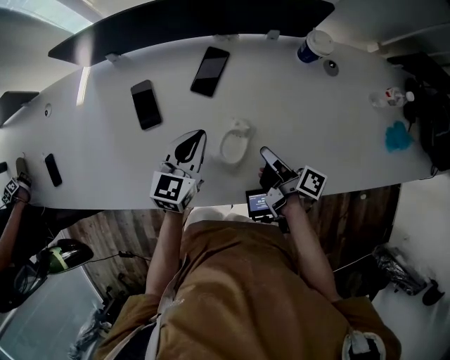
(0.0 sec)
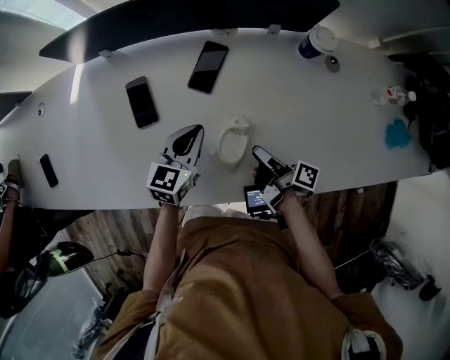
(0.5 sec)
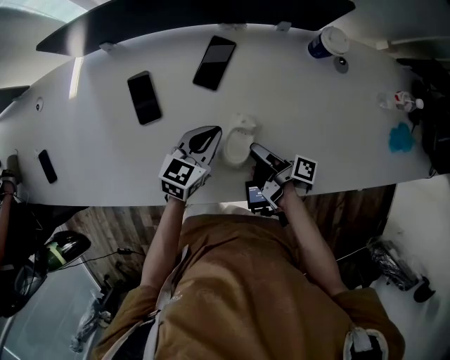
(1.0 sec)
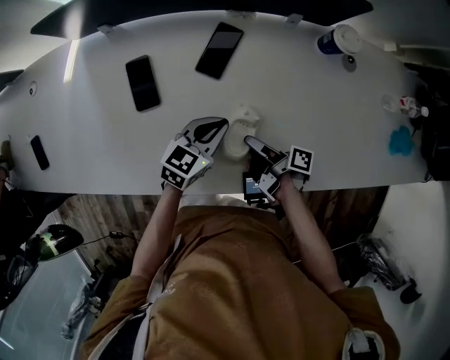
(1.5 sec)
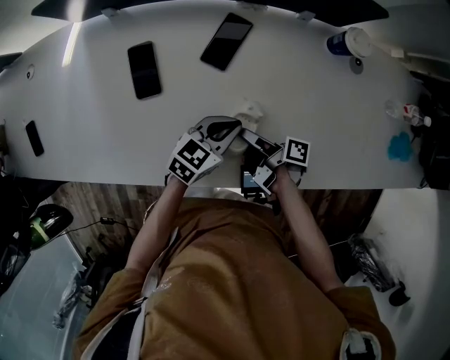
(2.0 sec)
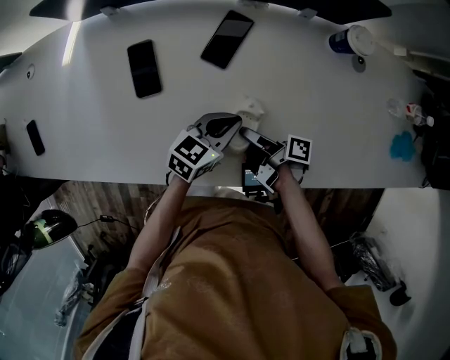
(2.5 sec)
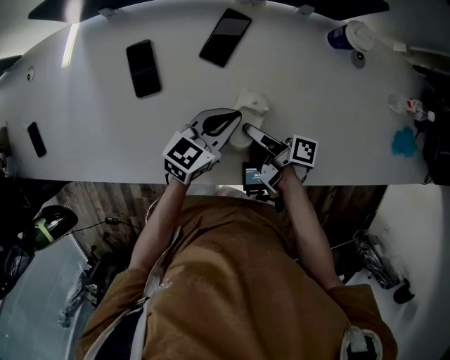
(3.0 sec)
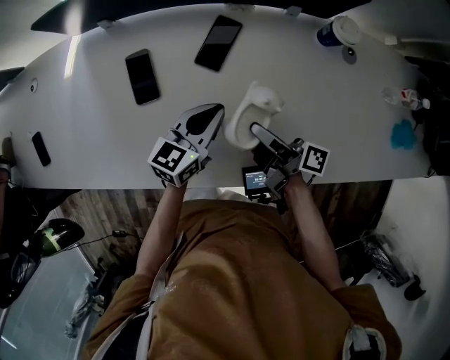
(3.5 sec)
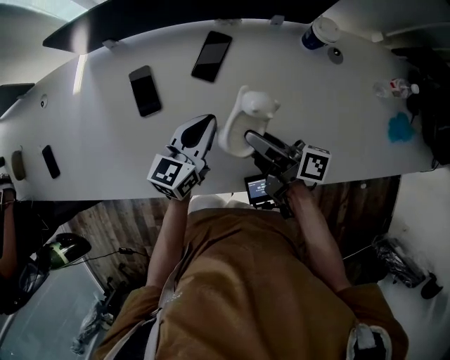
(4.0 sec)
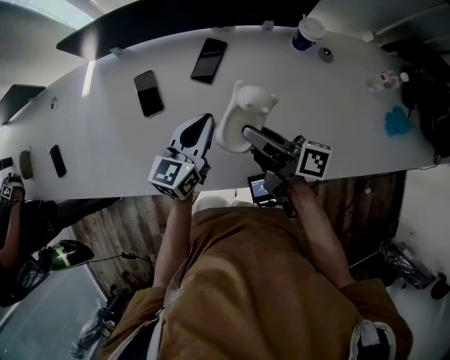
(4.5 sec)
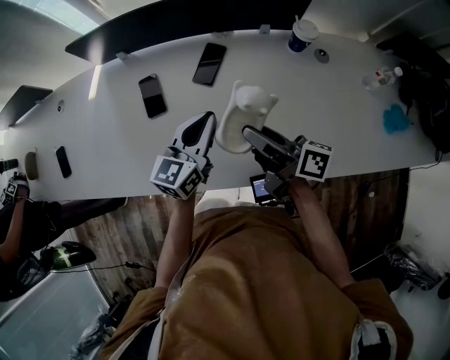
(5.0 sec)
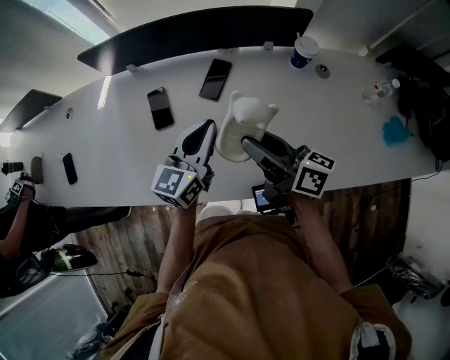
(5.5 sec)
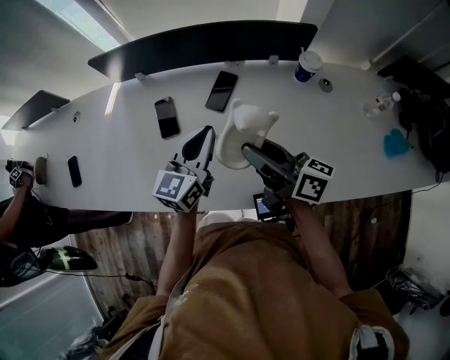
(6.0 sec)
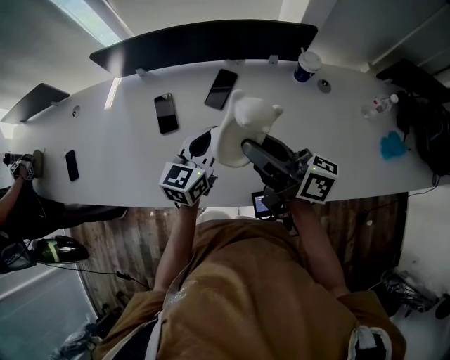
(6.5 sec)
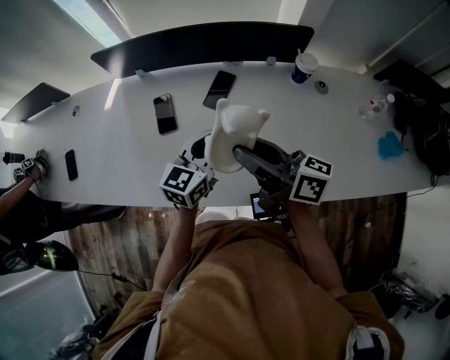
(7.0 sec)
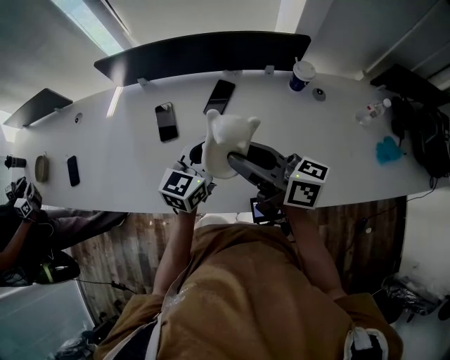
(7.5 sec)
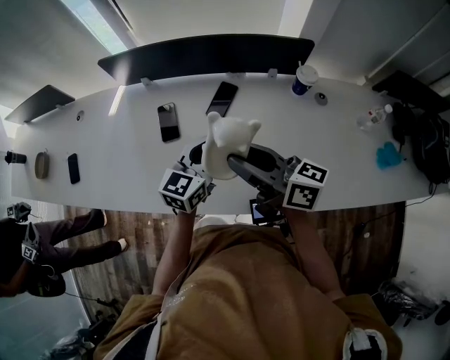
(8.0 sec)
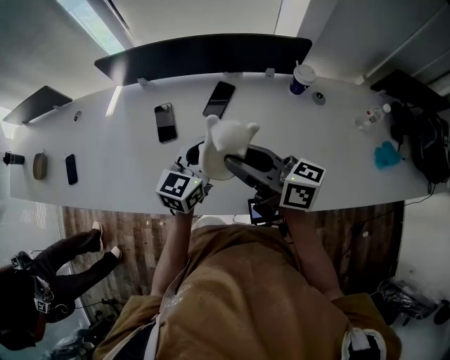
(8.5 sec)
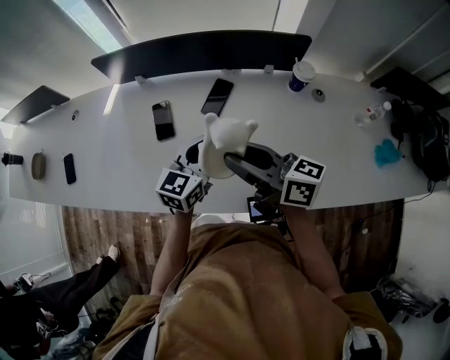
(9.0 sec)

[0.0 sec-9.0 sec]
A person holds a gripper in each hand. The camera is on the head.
0.0 sec to 2.0 sec: The right gripper heads to the left and downward, covering roughly 10 cm, rotates some 30 degrees, and opens its fingers; the left gripper moves downward and to the right, some 10 cm, and turns by some 30 degrees.
2.0 sec to 4.5 sec: The left gripper is displaced upward by approximately 10 cm, and rotates about 30 degrees, while the right gripper travels upward by approximately 20 cm, and rotates some 40 degrees.
4.5 sec to 7.0 sec: The right gripper goes roughly 10 cm upward, and changes its angle by some 20 degrees. Meanwhile the left gripper changes place by approximately 5 cm.
7.0 sec to 9.0 sec: There are only small adjustments of the grippers.

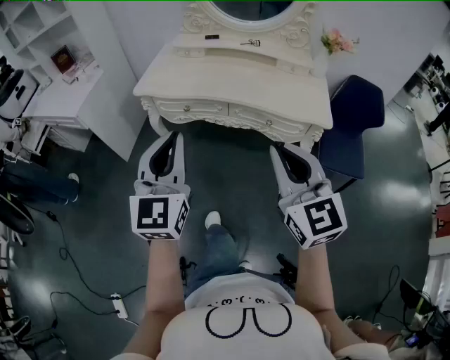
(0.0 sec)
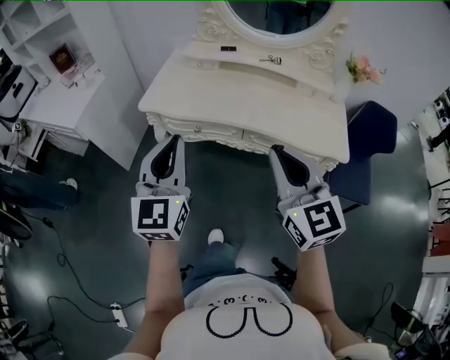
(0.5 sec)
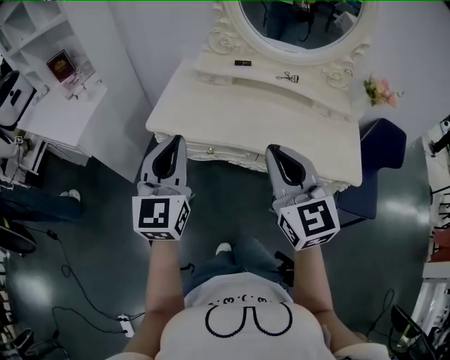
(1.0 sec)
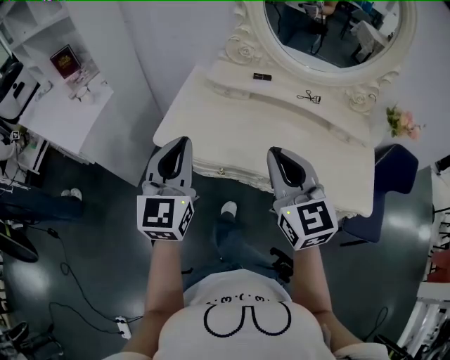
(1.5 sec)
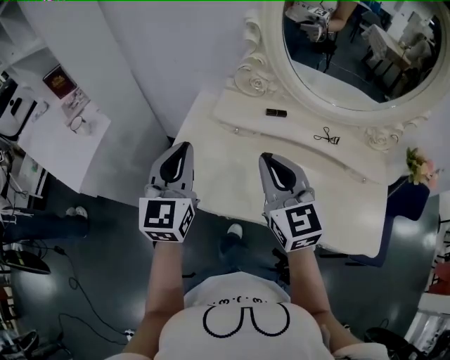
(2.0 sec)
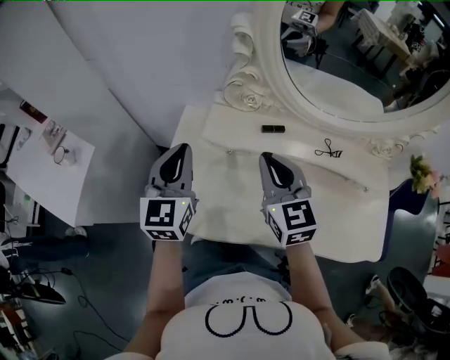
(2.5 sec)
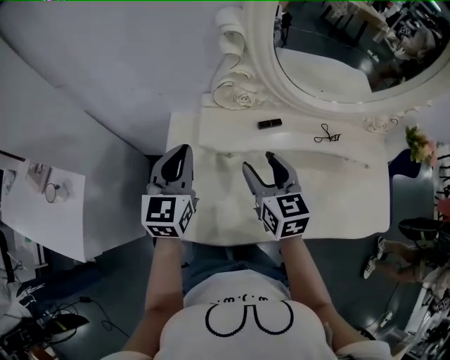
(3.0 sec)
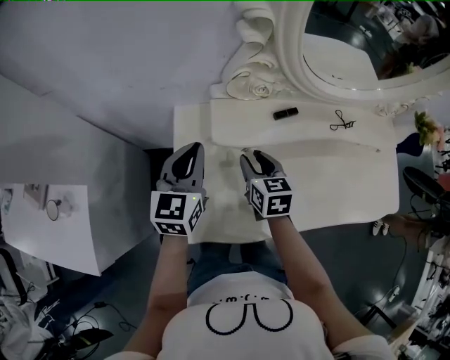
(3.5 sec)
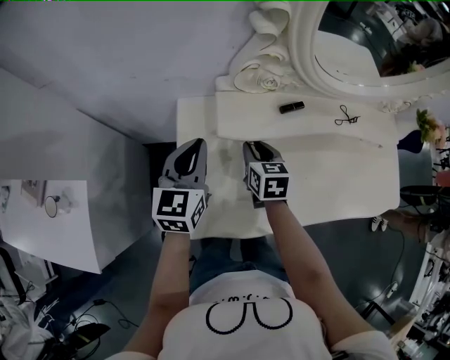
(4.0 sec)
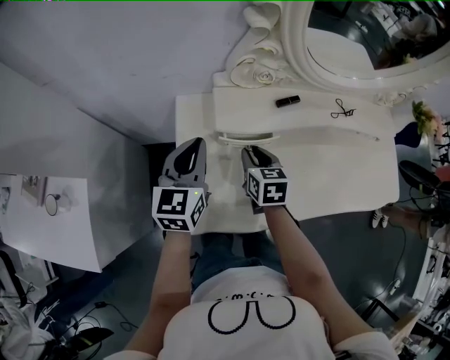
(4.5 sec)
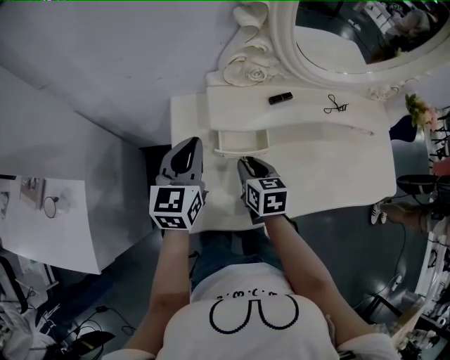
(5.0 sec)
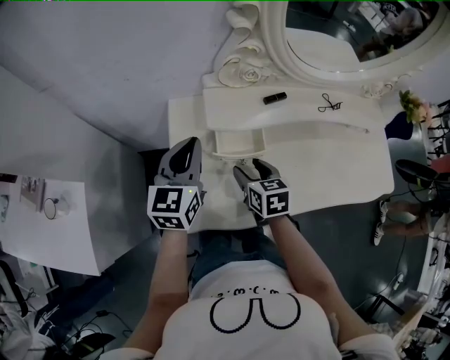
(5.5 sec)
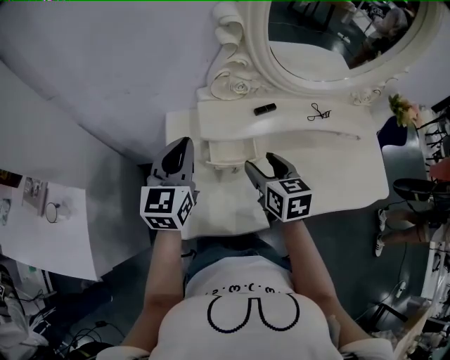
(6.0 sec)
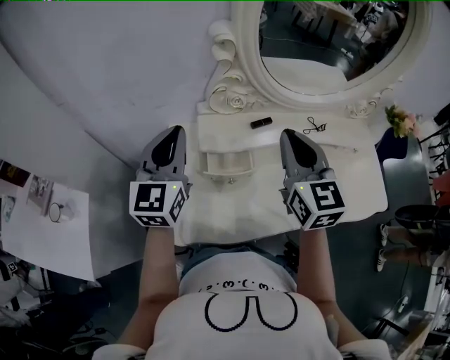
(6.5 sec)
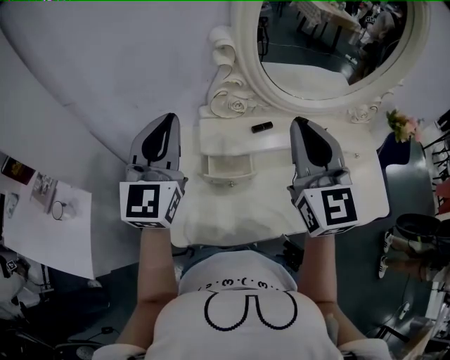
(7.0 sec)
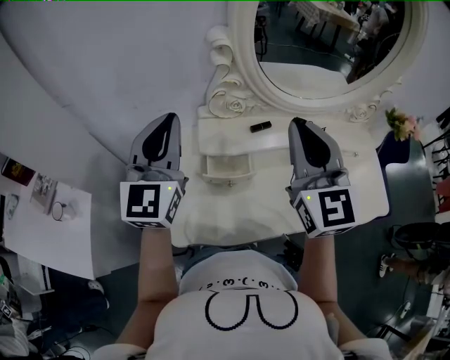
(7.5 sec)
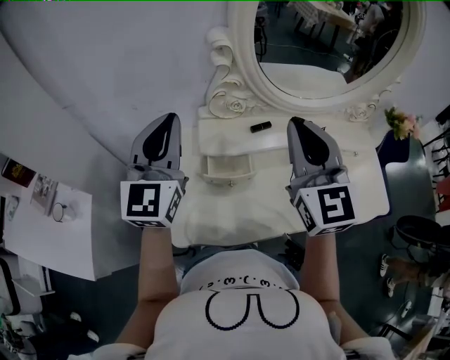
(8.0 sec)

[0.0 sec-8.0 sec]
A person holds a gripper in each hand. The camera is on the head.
0.0 sec to 2.0 sec: The pair of grippers is taken forward, approximately 60 cm.
2.0 sec to 4.0 sec: The right gripper travels downward by roughly 25 cm, changes its angle by some 50 degrees, and opens, then closes once more; the left gripper moves some 25 cm, and turns by roughly 30 degrees.
4.0 sec to 6.0 sec: The right gripper moves upward, backward and to the right, roughly 15 cm, and opens up, while the left gripper is displaced upward by some 5 cm.
6.0 sec to 8.0 sec: The right gripper goes some 25 cm upward, angles its fingers upward, by about 40 degrees, and closes, while the left gripper heads upward, covering approximately 15 cm, and swivels approximately 20 degrees.

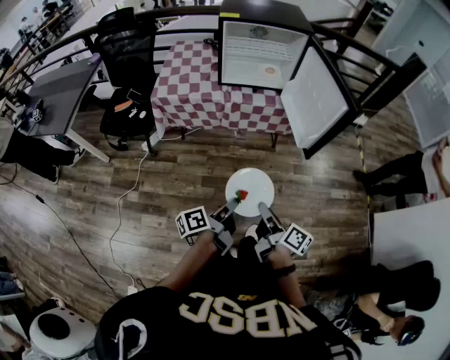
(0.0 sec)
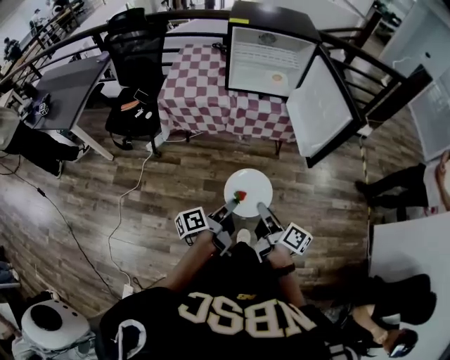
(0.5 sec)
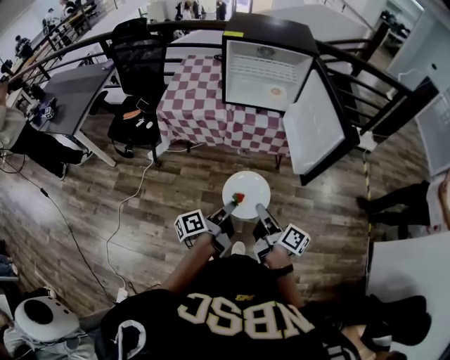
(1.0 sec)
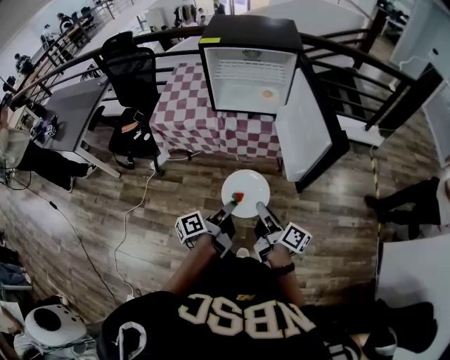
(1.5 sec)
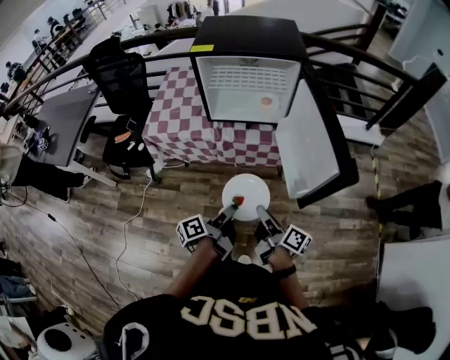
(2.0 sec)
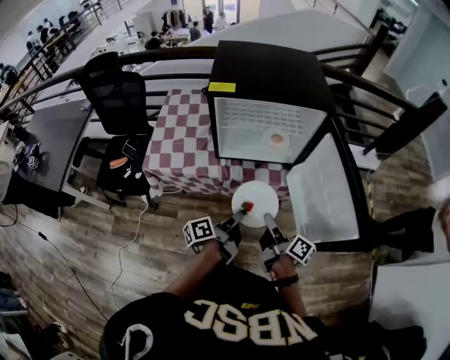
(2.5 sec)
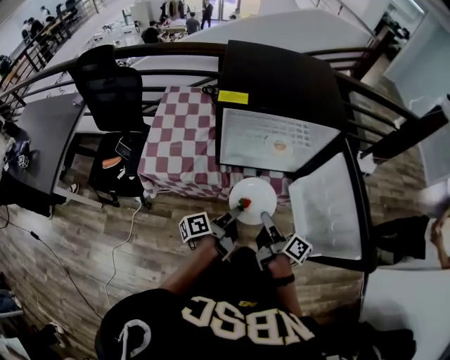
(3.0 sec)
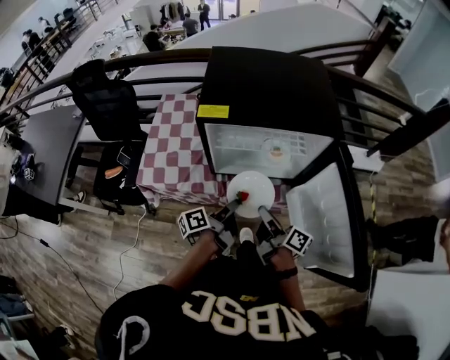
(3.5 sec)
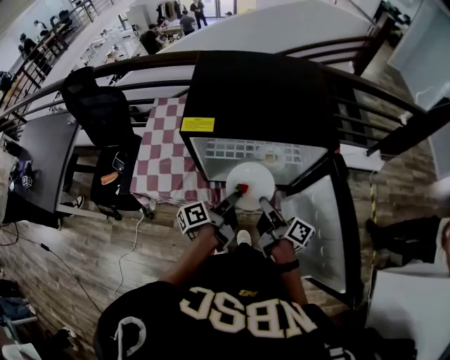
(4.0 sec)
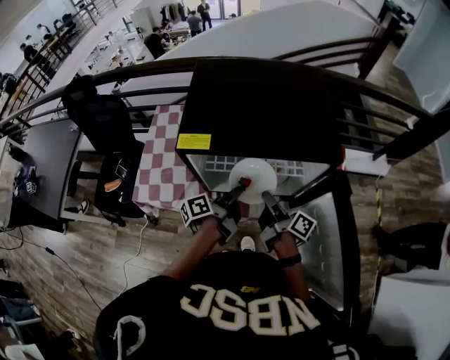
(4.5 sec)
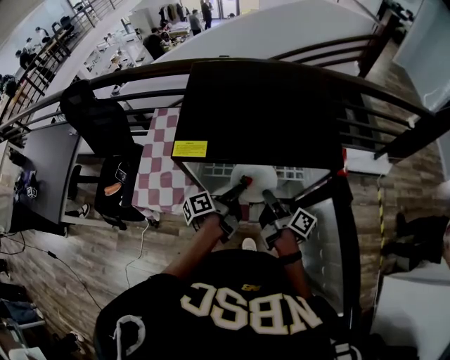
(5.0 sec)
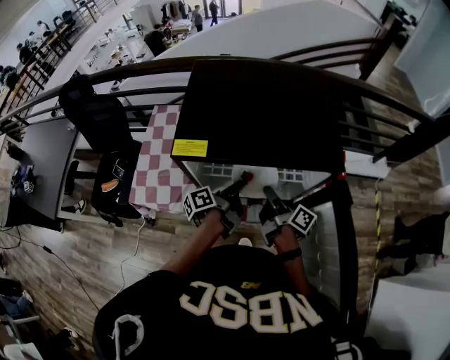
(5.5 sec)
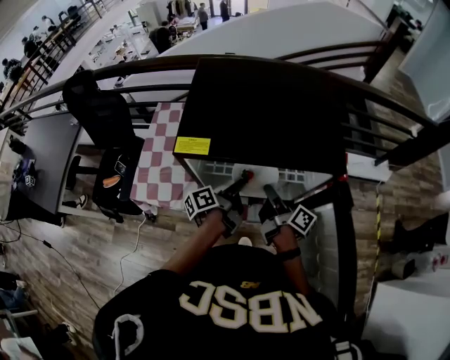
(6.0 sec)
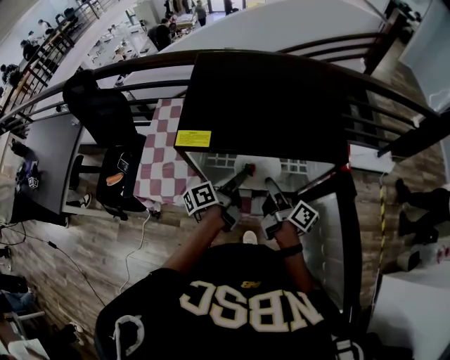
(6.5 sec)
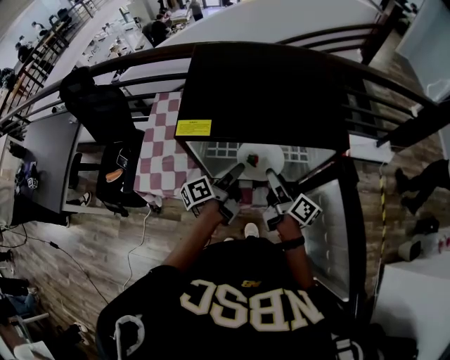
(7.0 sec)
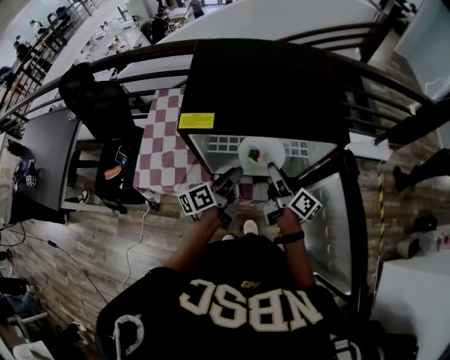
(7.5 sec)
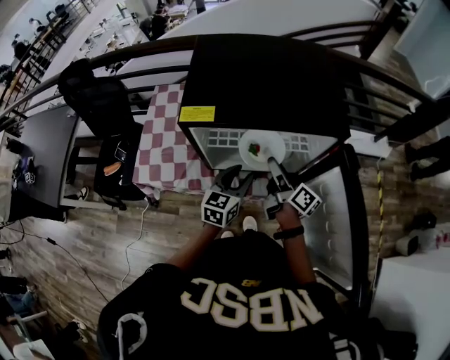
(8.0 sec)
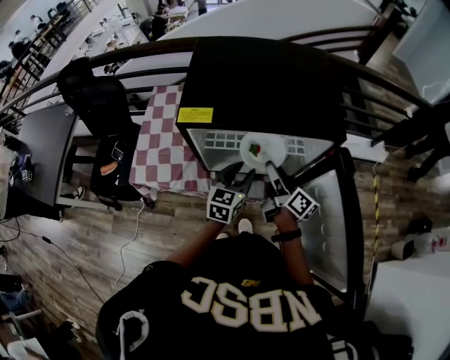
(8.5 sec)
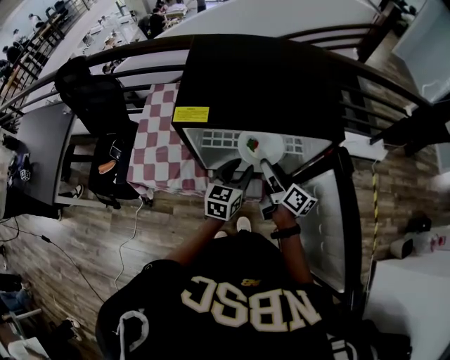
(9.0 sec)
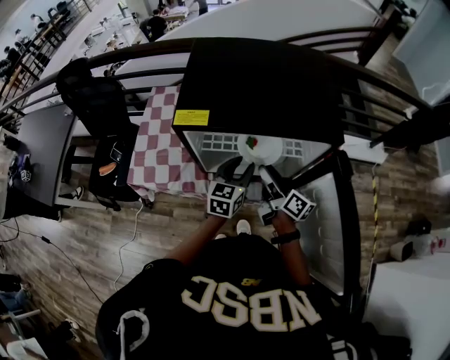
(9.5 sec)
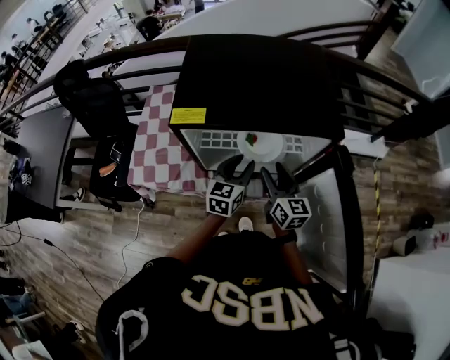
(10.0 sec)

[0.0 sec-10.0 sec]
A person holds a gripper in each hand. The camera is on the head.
0.0 sec to 2.0 sec: The grippers both shift forward by roughly 20 cm.
2.0 sec to 4.0 sec: Both grippers travel together forward, about 35 cm.
4.0 sec to 6.0 sec: The grippers both shift forward by approximately 10 cm.
6.0 sec to 8.0 sec: The right gripper opens. Meanwhile the left gripper shifts some 5 cm backward, rolls clockwise, seen from behind, by approximately 70 degrees, and opens up.
8.0 sec to 10.0 sec: The right gripper rolls counterclockwise, seen from behind, by roughly 50 degrees.
